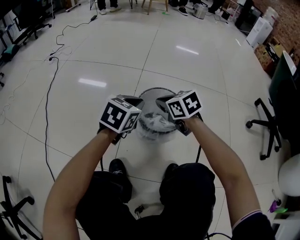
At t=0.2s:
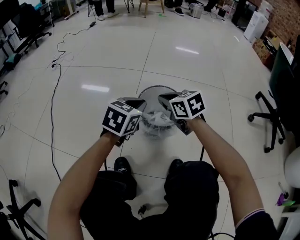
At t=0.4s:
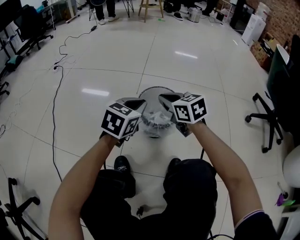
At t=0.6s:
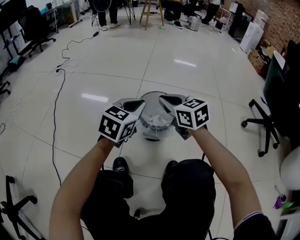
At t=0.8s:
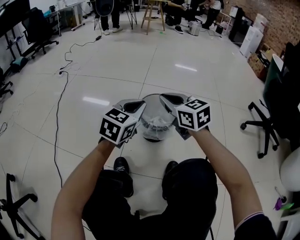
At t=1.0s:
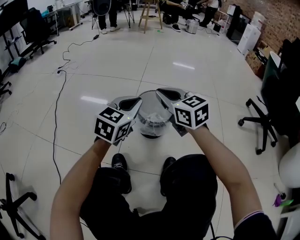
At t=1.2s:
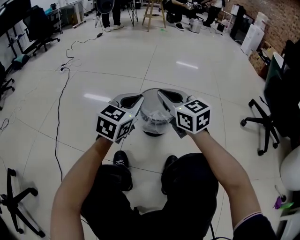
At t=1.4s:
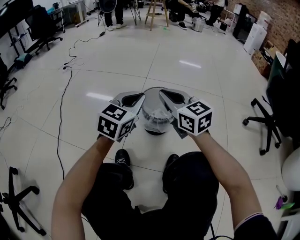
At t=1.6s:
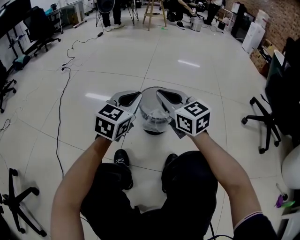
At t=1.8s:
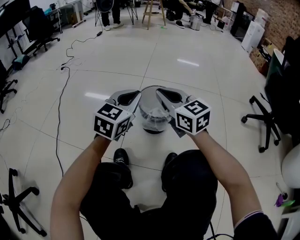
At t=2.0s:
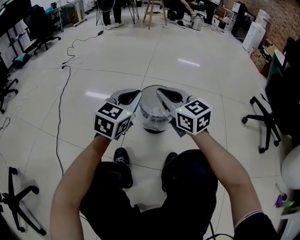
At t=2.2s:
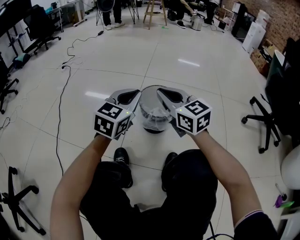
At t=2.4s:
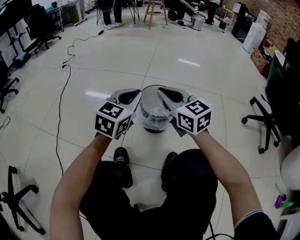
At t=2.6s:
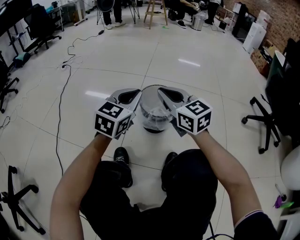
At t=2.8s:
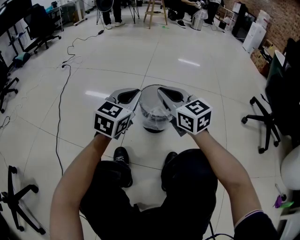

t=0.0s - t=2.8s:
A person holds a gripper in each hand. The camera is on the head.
t=0.0s - t=1.4s: Both grippers travel together upward and backward, about 20 cm. The right gripper angles its fingers upward, by about 30 degrees, while the left gripper swivels some 20 degrees.
t=1.4s - t=2.8s: The two grippers keep their place.

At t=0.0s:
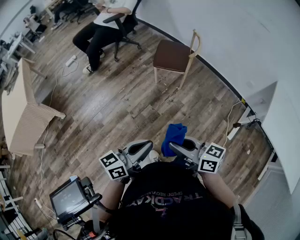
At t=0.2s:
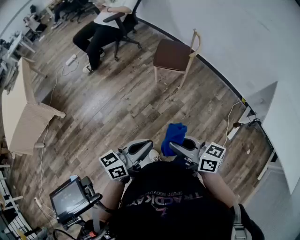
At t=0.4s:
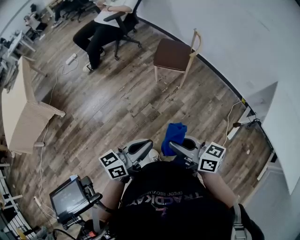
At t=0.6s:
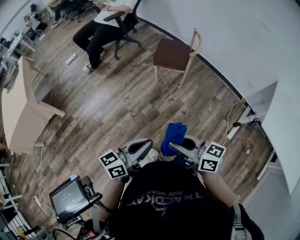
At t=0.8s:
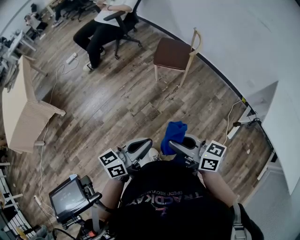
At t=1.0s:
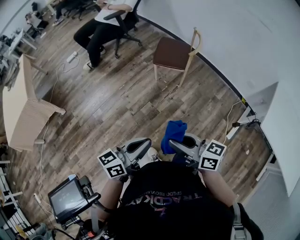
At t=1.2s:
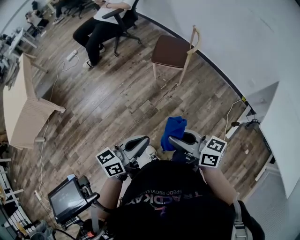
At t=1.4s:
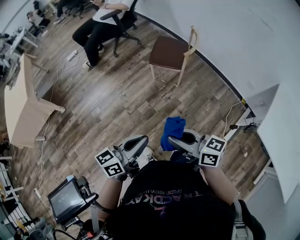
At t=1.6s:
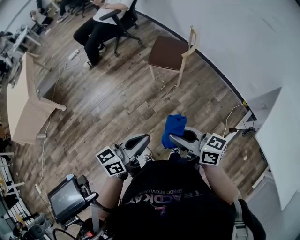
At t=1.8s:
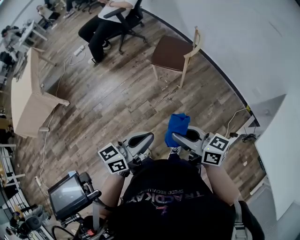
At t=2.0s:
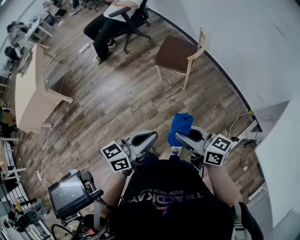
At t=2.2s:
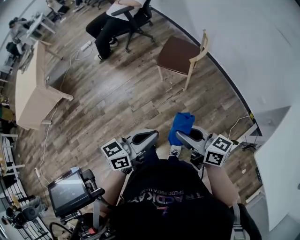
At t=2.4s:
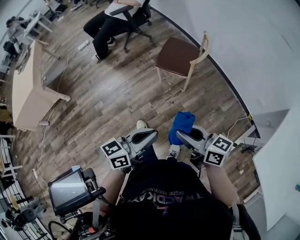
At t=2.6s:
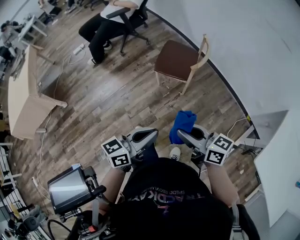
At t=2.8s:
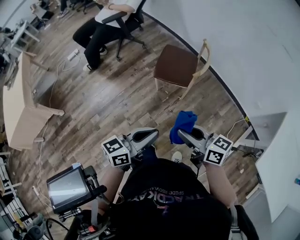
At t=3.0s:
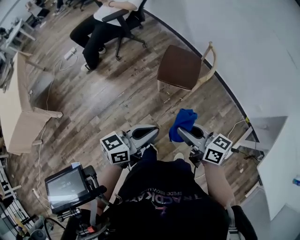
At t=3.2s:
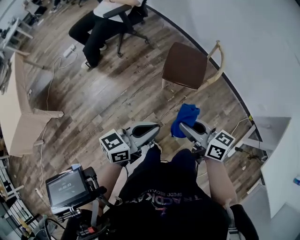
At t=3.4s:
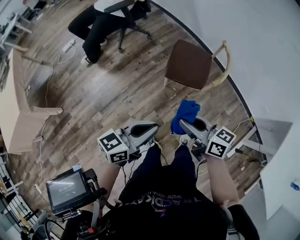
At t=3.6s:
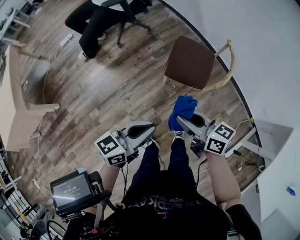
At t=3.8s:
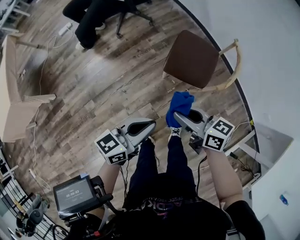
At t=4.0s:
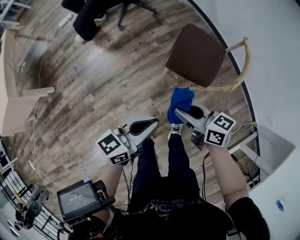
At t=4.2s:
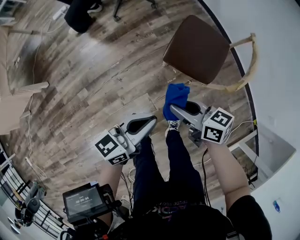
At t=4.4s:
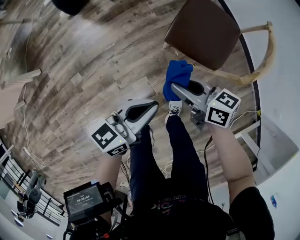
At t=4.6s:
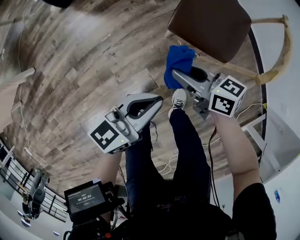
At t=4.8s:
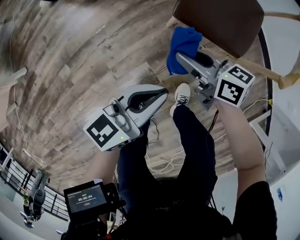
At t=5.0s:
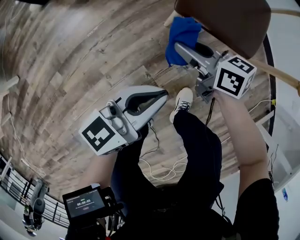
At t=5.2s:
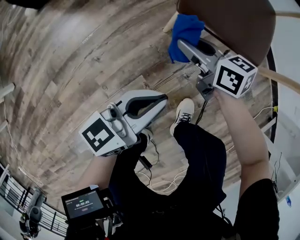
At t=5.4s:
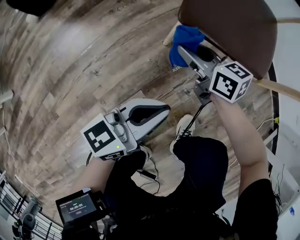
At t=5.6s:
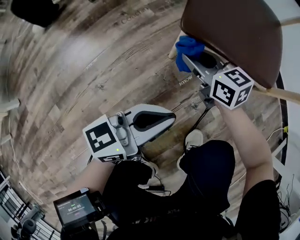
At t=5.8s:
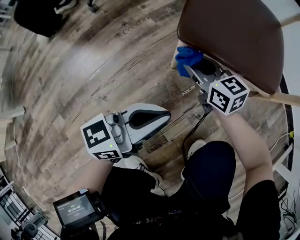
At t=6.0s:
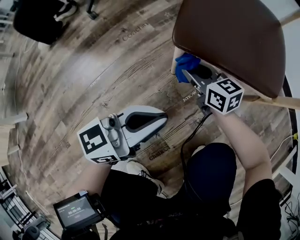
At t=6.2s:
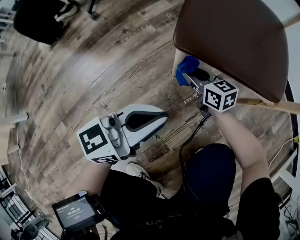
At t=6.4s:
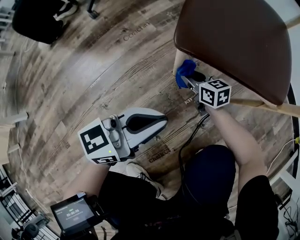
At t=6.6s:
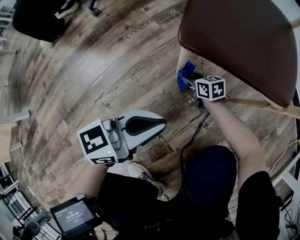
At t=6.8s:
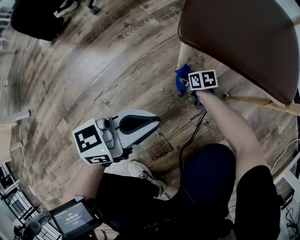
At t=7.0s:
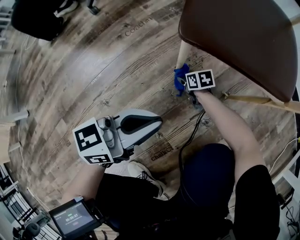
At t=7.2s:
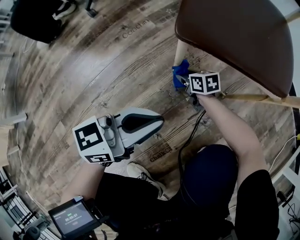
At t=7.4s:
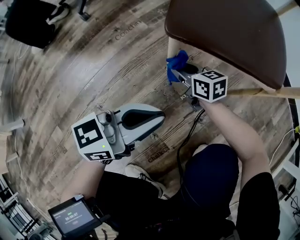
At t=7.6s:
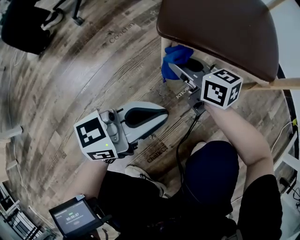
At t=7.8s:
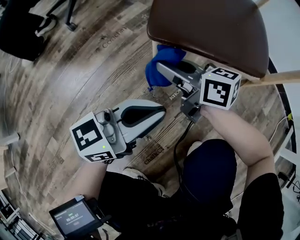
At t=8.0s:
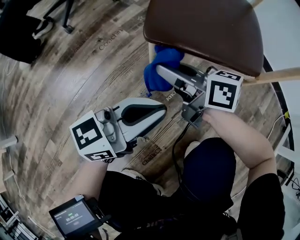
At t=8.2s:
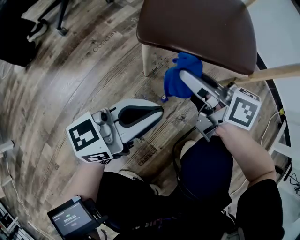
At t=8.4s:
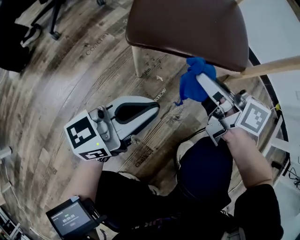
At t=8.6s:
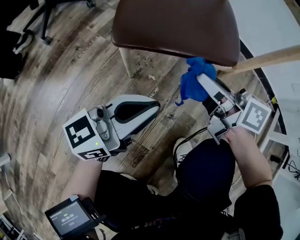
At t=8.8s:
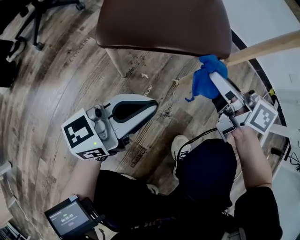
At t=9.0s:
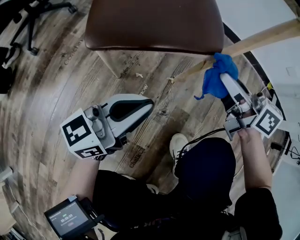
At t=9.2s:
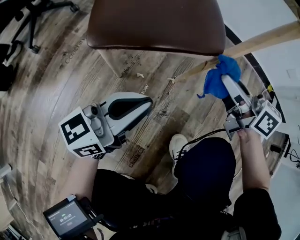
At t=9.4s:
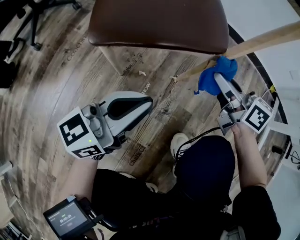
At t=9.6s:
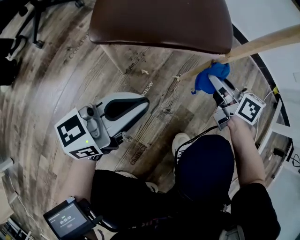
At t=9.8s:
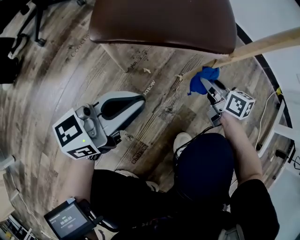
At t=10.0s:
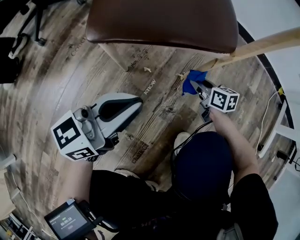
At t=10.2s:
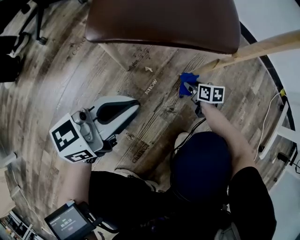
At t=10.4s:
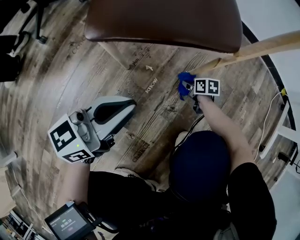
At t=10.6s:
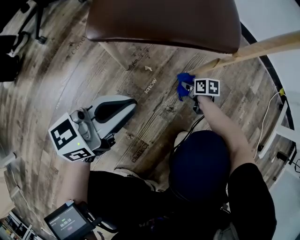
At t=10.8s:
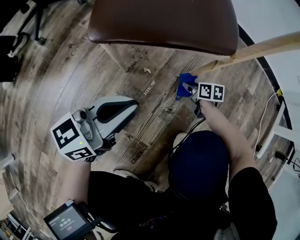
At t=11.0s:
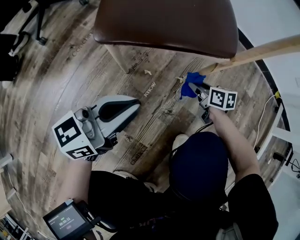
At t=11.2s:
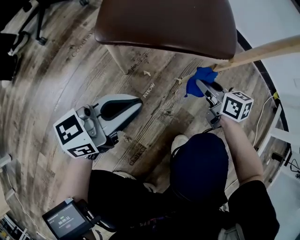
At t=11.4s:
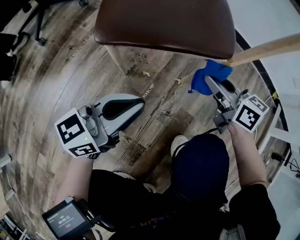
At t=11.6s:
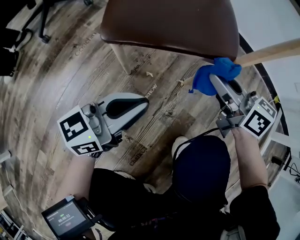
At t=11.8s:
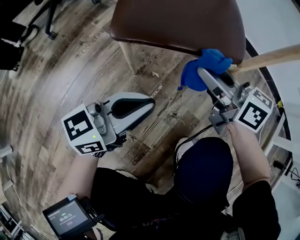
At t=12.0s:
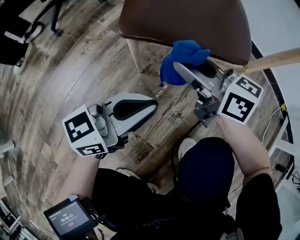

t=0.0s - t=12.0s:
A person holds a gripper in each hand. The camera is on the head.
t=0.0s - t=1.6s: The right gripper is displaced to the right and forward by about 15 cm. The left gripper travels to the right by about 15 cm.
t=1.6s - t=3.0s: The grippers both shift forward by about 25 cm.
t=3.0s - t=4.4s: Both grippers travel together downward and forward, some 35 cm. The right gripper changes its angle by approximately 20 degrees.
t=4.4s - t=6.0s: Both grippers move downward, some 40 cm. The right gripper changes its angle by about 30 degrees. The left gripper swivels roughly 20 degrees.
t=6.0s - t=7.6s: The right gripper goes downward and returns, approximately 25 cm each way.
t=7.6s - t=9.0s: The left gripper goes roughly 5 cm to the right; the right gripper is displaced to the right and upward by about 30 cm, and rotates approximately 30 degrees.
t=9.0s - t=10.4s: The right gripper shifts roughly 40 cm downward, and points its fingers some 40 degrees further downward.
t=10.4s - t=12.0s: The right gripper heads upward and to the left, covering roughly 40 cm, and tilts its fingers roughly 40 degrees upward.

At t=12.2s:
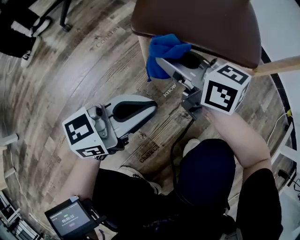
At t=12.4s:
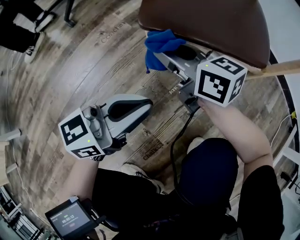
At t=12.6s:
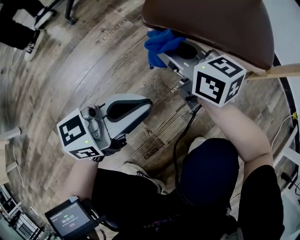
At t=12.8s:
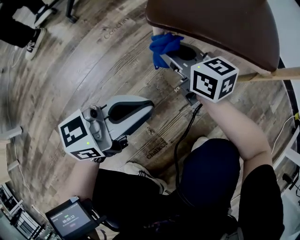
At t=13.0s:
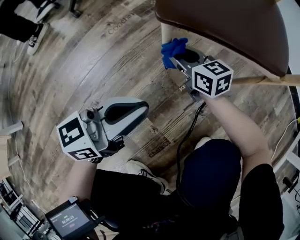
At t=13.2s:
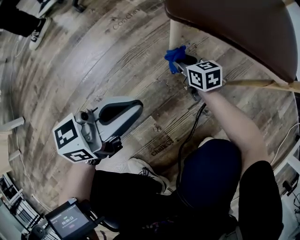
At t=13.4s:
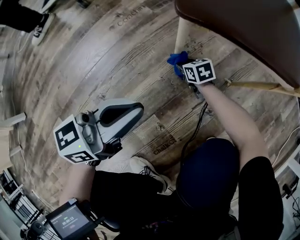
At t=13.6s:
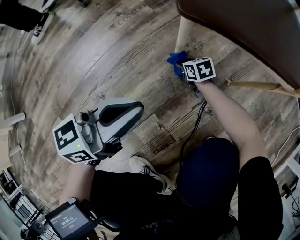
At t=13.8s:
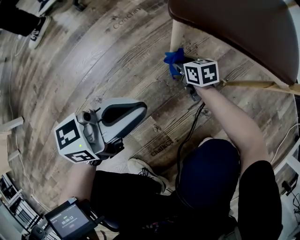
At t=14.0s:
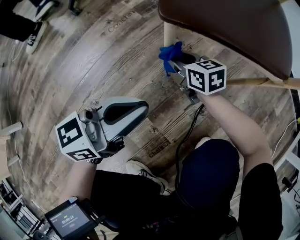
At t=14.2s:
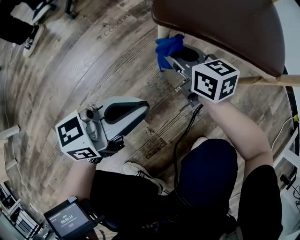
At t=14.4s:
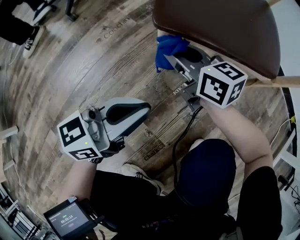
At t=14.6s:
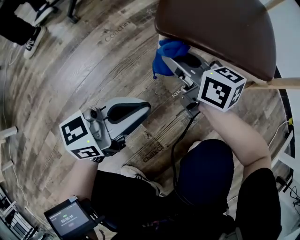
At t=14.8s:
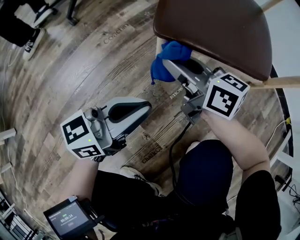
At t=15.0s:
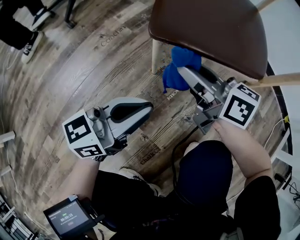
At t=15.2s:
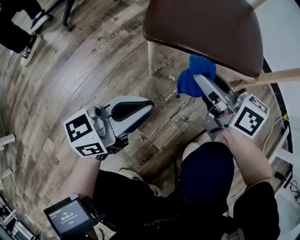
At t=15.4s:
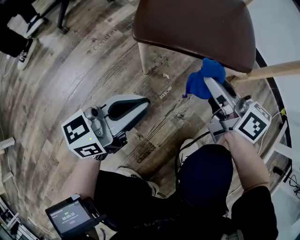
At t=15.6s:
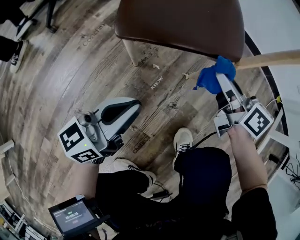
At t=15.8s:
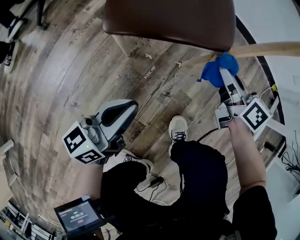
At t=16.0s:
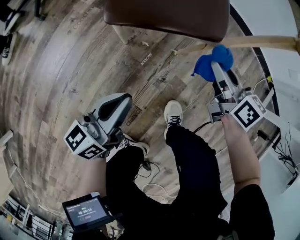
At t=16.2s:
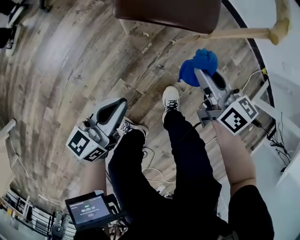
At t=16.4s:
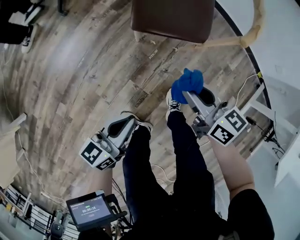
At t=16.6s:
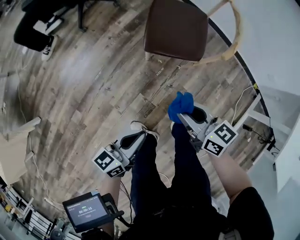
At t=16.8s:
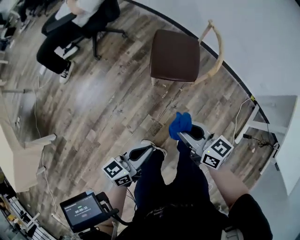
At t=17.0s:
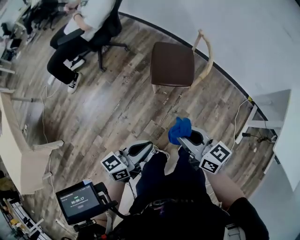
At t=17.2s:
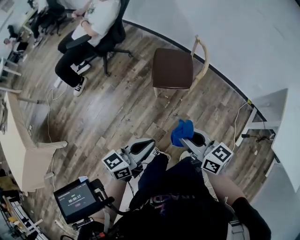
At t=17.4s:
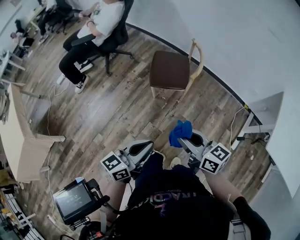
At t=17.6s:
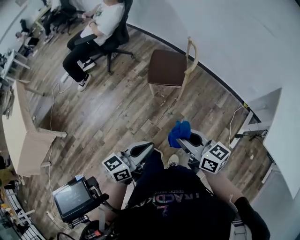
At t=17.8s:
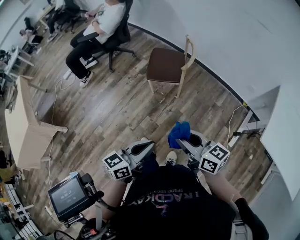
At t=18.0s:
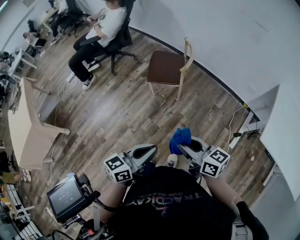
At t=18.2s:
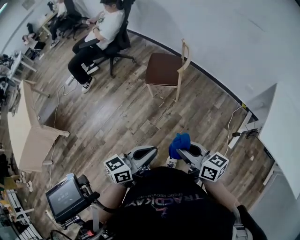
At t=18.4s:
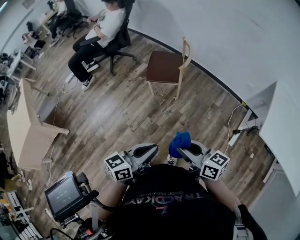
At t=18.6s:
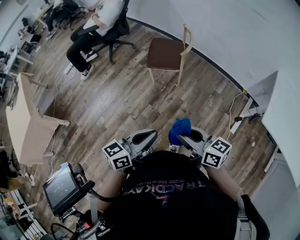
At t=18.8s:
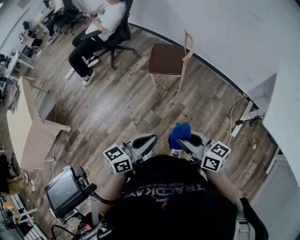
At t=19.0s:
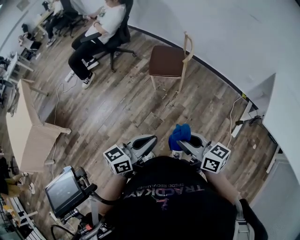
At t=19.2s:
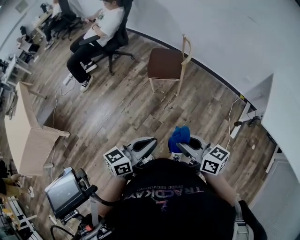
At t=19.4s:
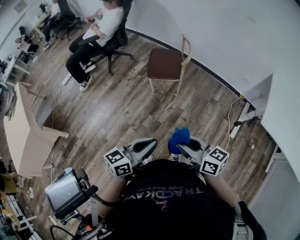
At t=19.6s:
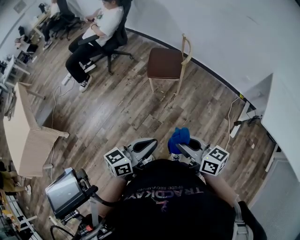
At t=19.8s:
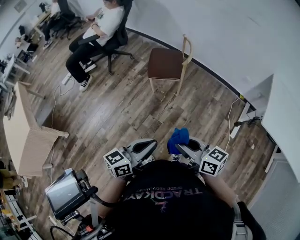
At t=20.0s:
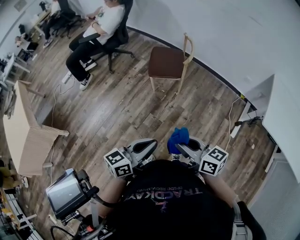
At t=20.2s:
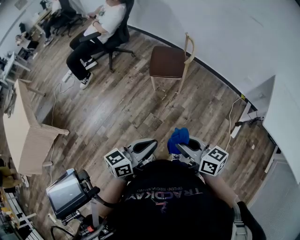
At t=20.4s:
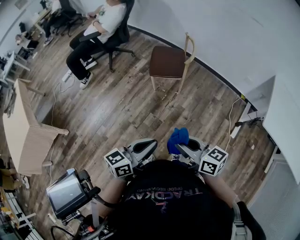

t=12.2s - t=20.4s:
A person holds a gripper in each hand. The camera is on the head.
t=12.2s - t=13.8s: The left gripper is displaced to the left by about 5 cm; the right gripper heads downward, covering approximately 30 cm, and rotates roughly 30 degrees.
t=13.8s - t=15.4s: The right gripper goes approximately 35 cm upward and to the right, and swivels some 30 degrees. The left gripper moves to the right, roughly 5 cm.
t=15.4s - t=17.2s: The grippers both shift upward and backward by roughly 60 cm.
t=17.2s - t=18.8s: The two grippers go roughly 25 cm backward and to the right.
t=18.8s - t=20.4s: The grippers both shift to the left by approximately 5 cm.
